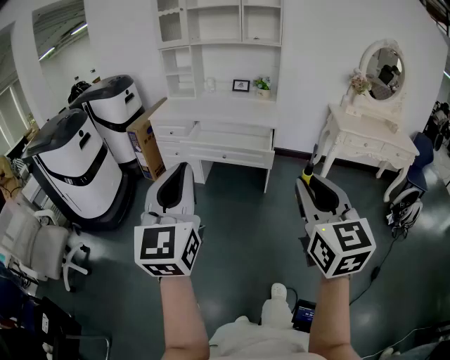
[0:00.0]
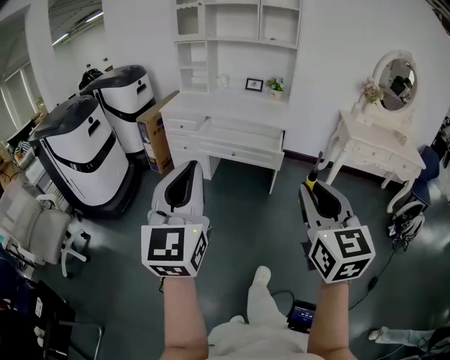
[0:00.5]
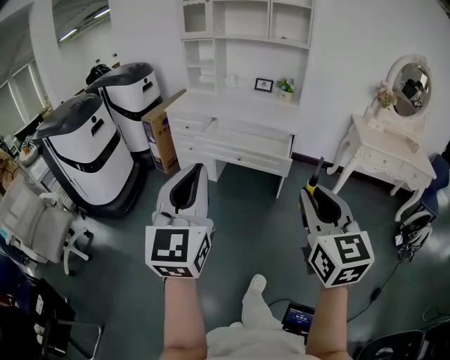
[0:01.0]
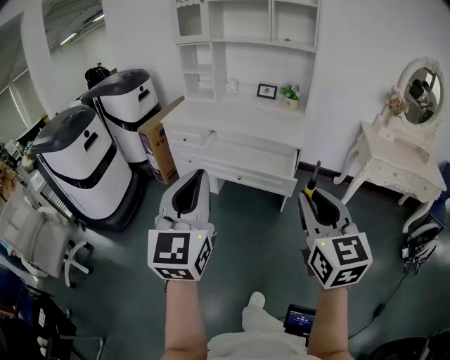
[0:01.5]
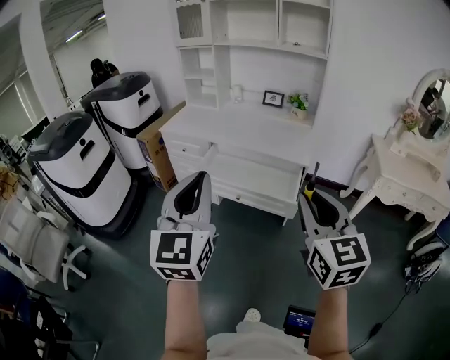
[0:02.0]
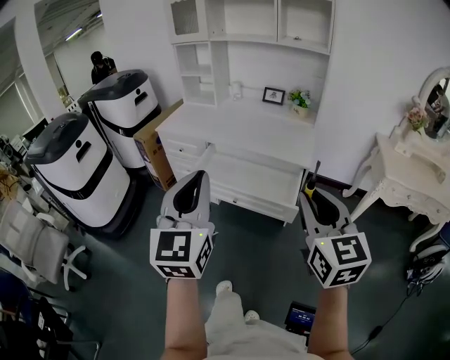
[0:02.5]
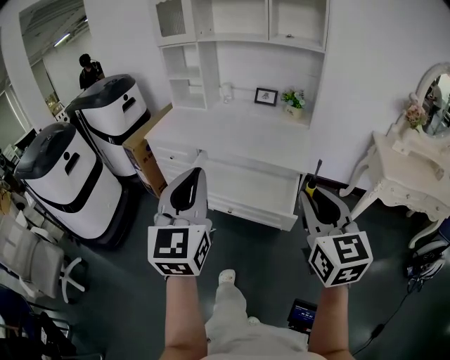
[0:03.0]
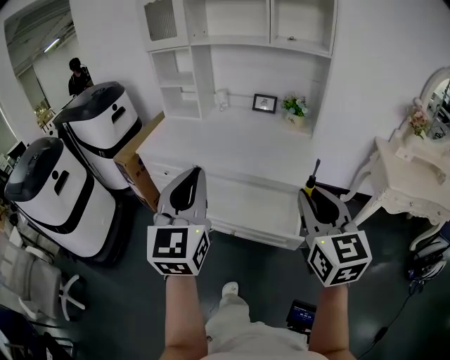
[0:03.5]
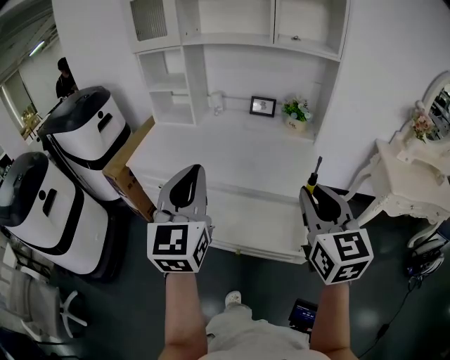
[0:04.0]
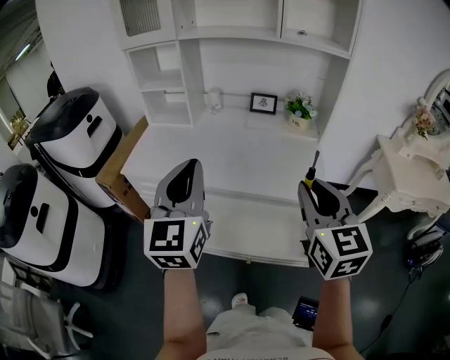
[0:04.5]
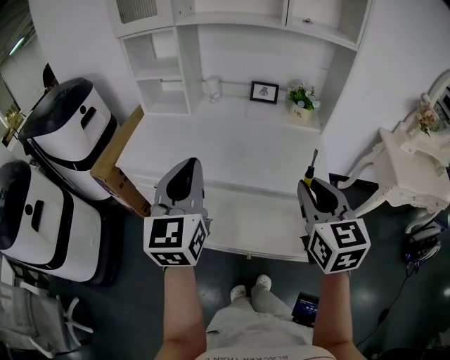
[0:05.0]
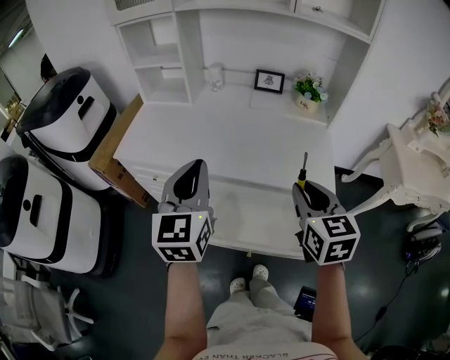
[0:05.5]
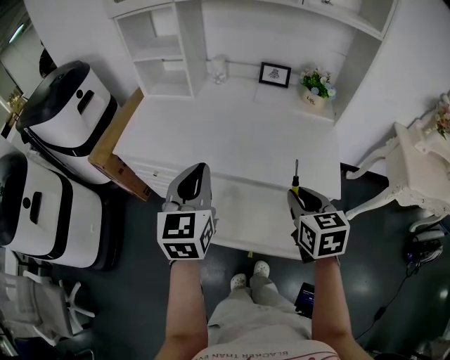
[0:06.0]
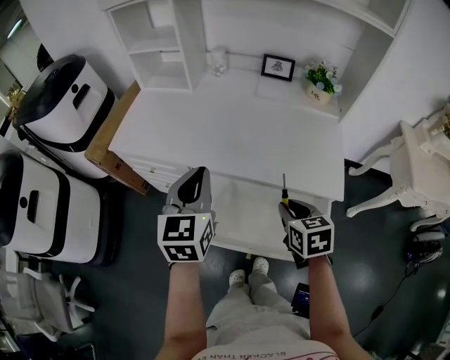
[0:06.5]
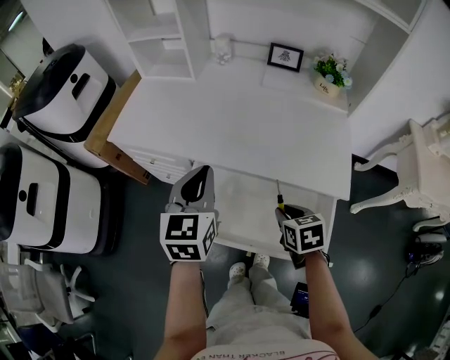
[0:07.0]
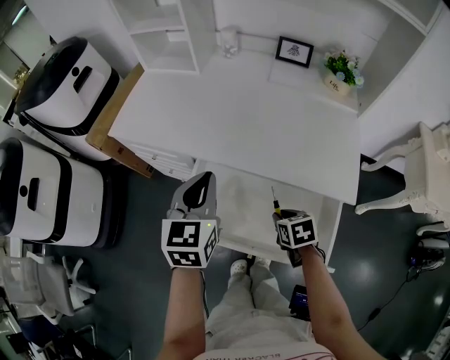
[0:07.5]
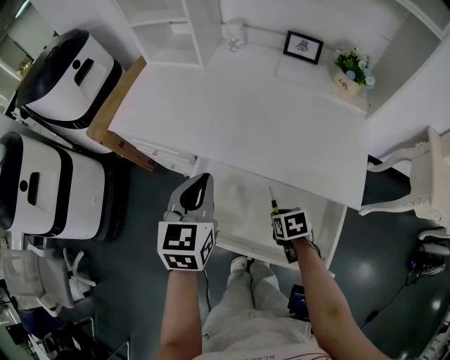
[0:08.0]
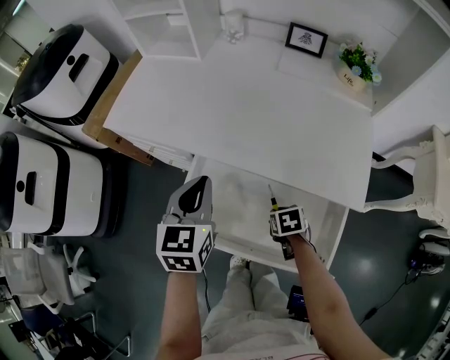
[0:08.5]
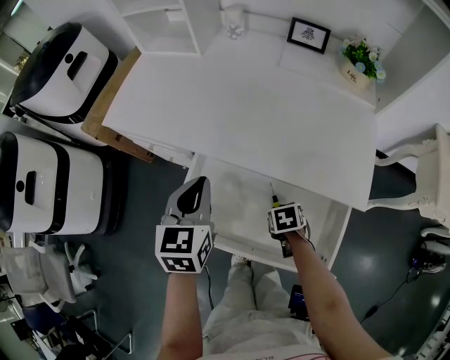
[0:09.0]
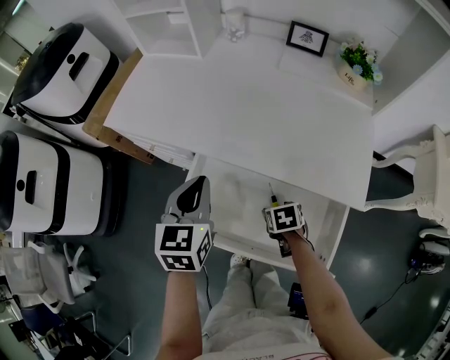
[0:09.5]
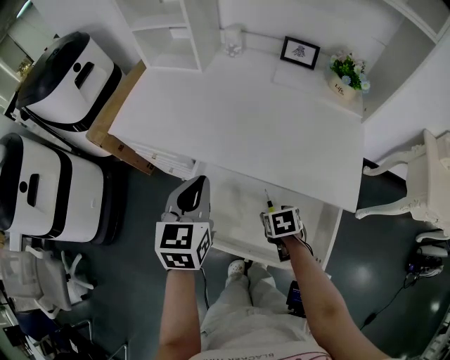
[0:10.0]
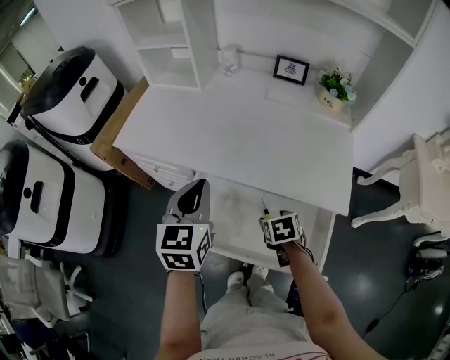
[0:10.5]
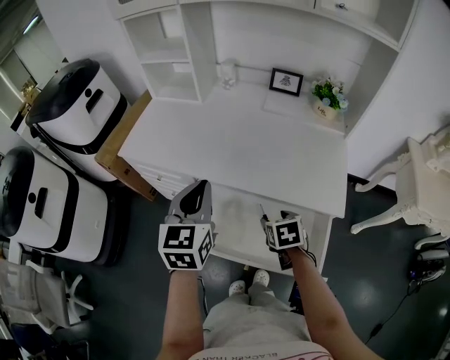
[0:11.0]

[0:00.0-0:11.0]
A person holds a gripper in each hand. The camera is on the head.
0:00.0 to 0:02.0: Both grippers move forward, about 30 cm.
0:02.0 to 0:03.5: Both grippers travel together forward, roughly 20 cm.
0:03.5 to 0:05.5: Both grippers travel together forward and downward, about 25 cm.
0:05.5 to 0:07.5: The left gripper travels downward by roughly 15 cm. The right gripper heads downward, covering some 30 cm, and points its fingers roughly 40 degrees further downward.
0:07.5 to 0:09.0: The left gripper is displaced downward by some 5 cm. The right gripper shifts approximately 10 cm downward.
0:09.0 to 0:11.0: Both grippers move upward, roughly 15 cm. The right gripper opens.

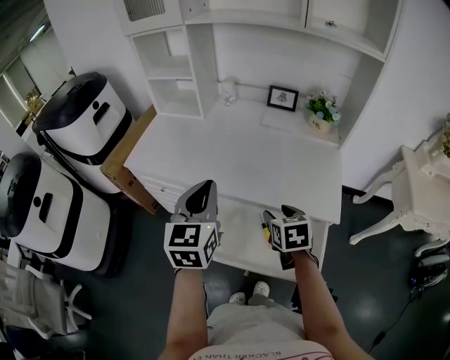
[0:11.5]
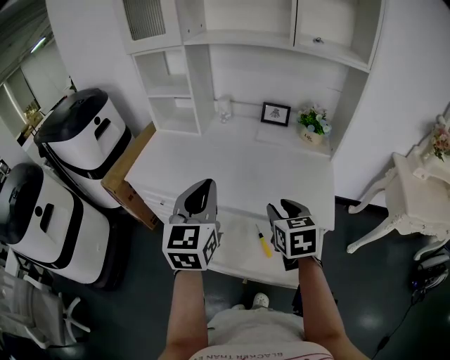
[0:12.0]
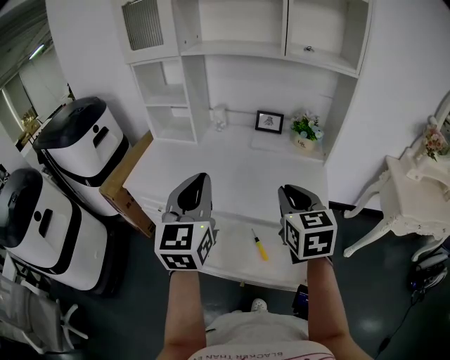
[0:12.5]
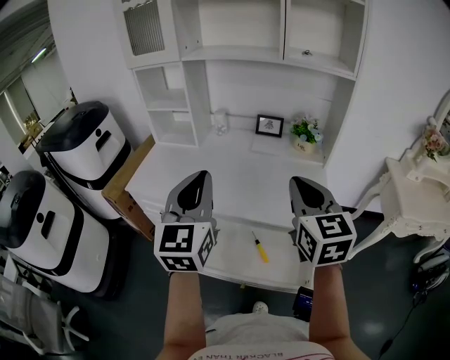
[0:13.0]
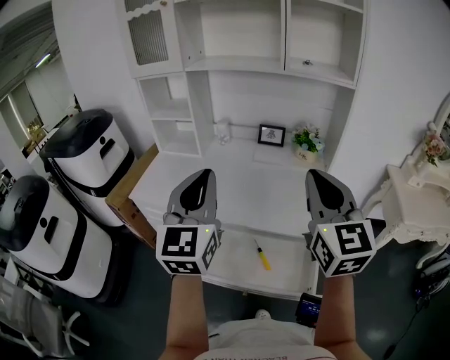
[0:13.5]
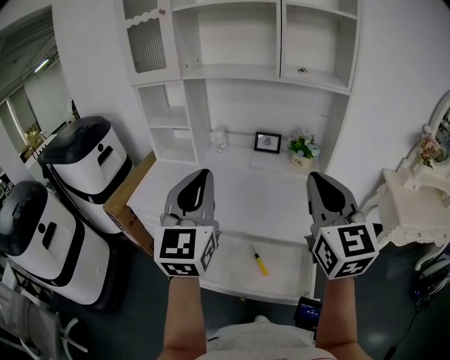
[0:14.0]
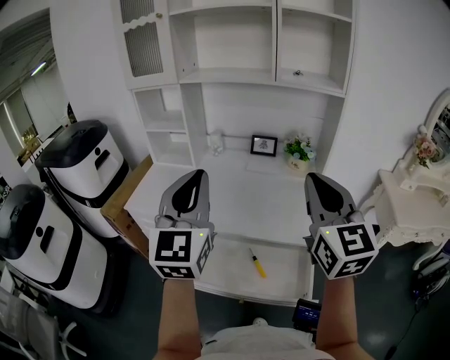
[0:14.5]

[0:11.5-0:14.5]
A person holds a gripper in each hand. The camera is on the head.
0:11.5 to 0:13.0: The left gripper shifts about 15 cm upward. Meanwhile the right gripper is displaced upward by roughly 25 cm, angles its fingers upward, by about 40 degrees, and closes up.
0:13.0 to 0:14.5: The two grippers go roughly 10 cm upward.

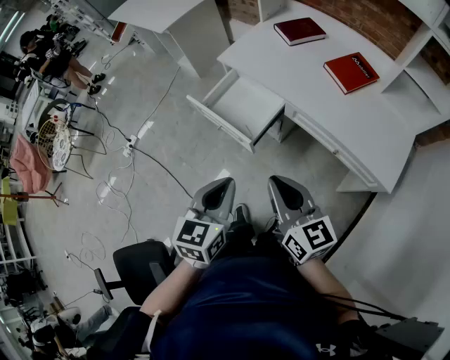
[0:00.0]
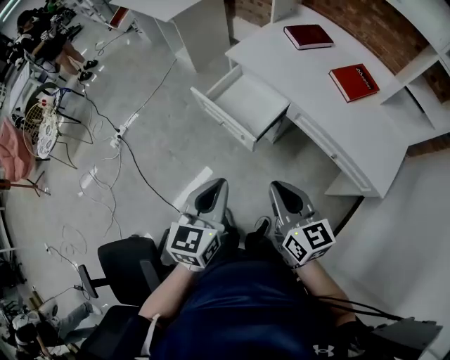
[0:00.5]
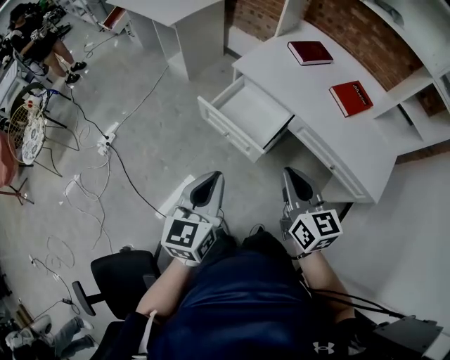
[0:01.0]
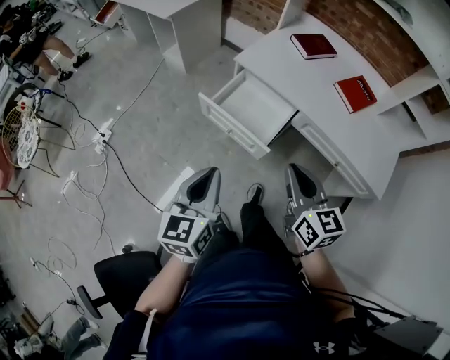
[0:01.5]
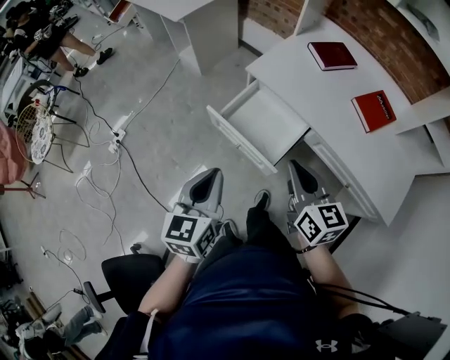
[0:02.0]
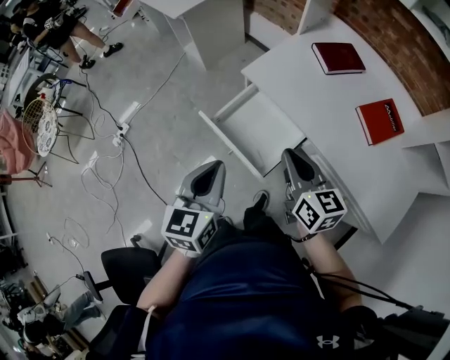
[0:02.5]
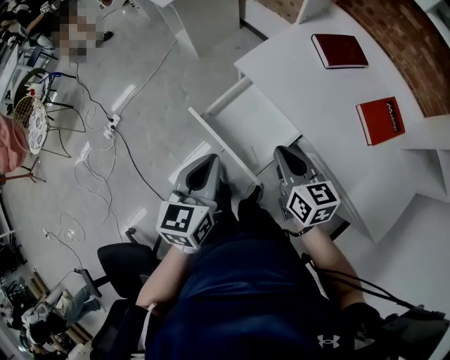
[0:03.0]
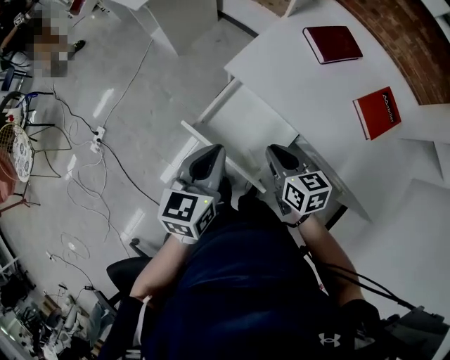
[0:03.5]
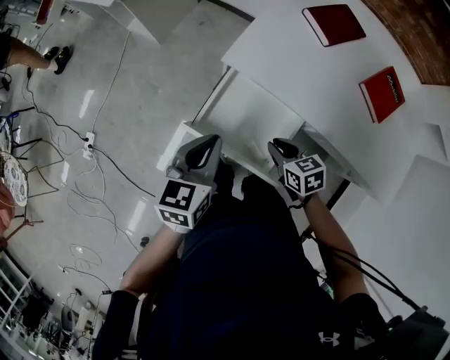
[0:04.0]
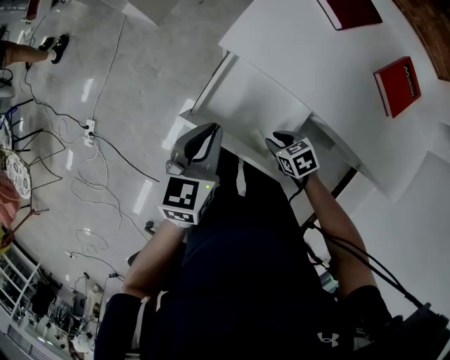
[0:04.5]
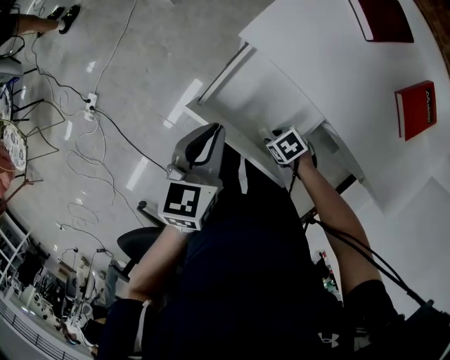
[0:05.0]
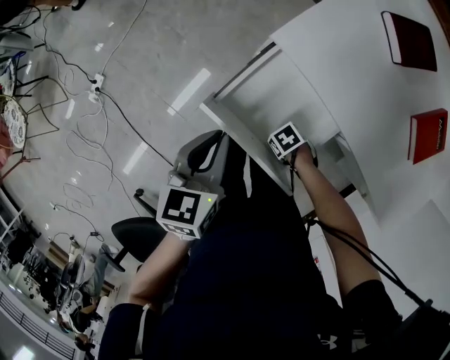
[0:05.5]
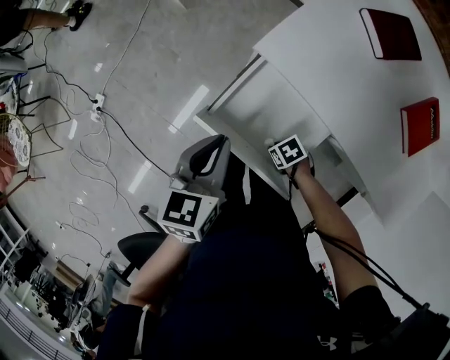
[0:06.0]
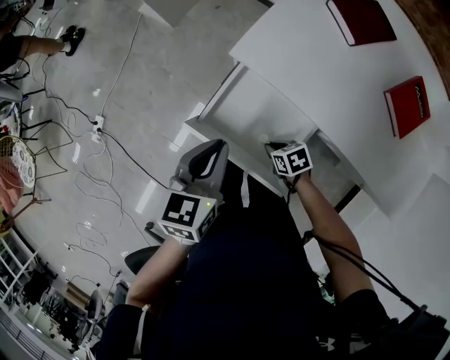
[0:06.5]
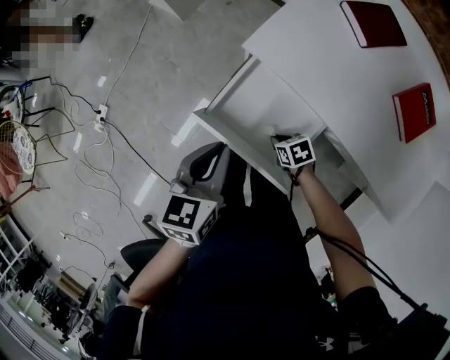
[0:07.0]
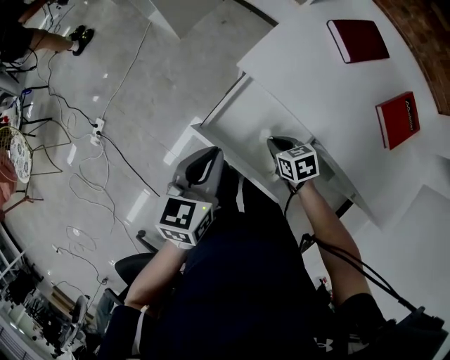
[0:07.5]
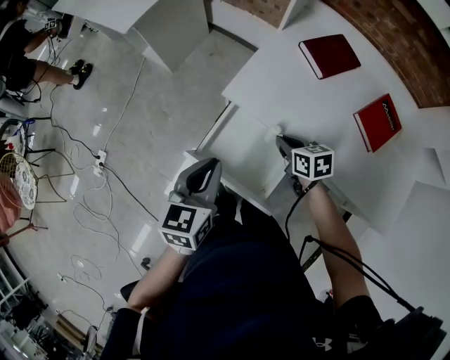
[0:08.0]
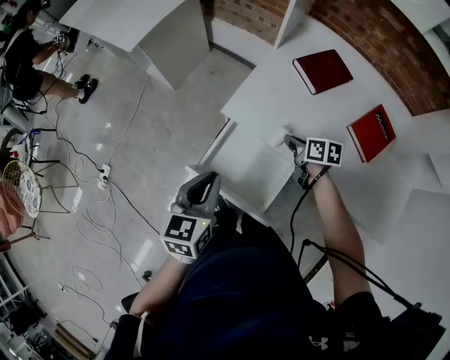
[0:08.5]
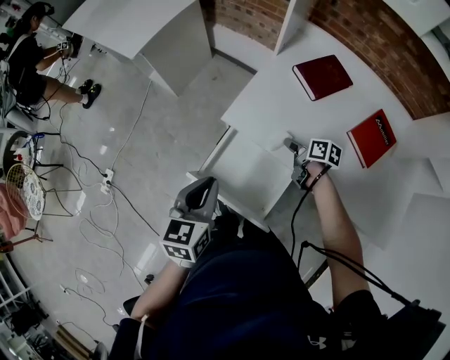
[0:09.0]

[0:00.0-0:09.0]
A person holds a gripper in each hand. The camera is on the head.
0:00.0 to 0:02.0: The right gripper shifts approximately 20 cm forward and to the left. Meanwhile the left gripper shifts approximately 20 cm to the left and forward.
0:02.0 to 0:04.5: The right gripper goes some 35 cm downward, angles its fingers downward, by some 50 degrees, and opens; the left gripper goes approximately 30 cm forward and downward, and changes its angle by some 20 degrees.
0:04.5 to 0:07.0: The right gripper is displaced downward by roughly 5 cm, and closes.
0:07.0 to 0:09.0: The right gripper heads forward, upward and to the right, covering approximately 25 cm, swivels about 50 degrees, and opens, while the left gripper shifts some 10 cm upward.

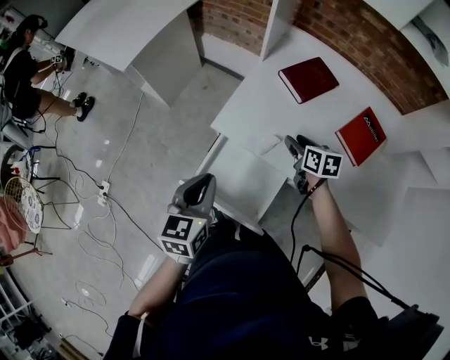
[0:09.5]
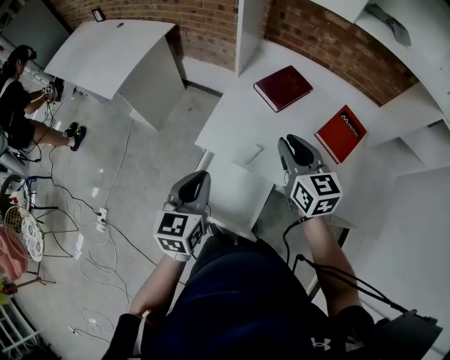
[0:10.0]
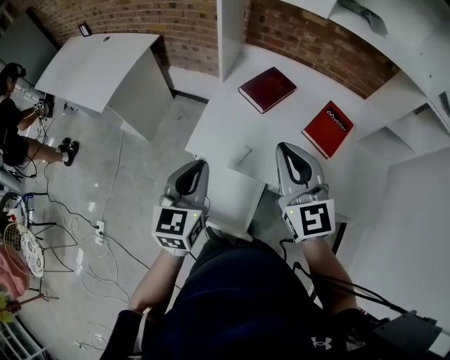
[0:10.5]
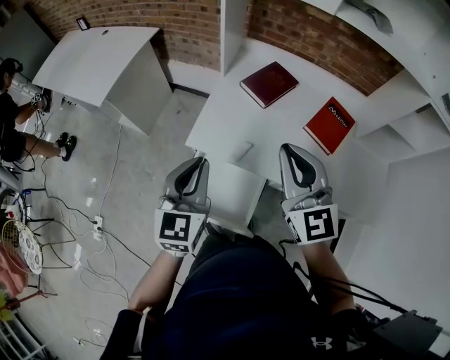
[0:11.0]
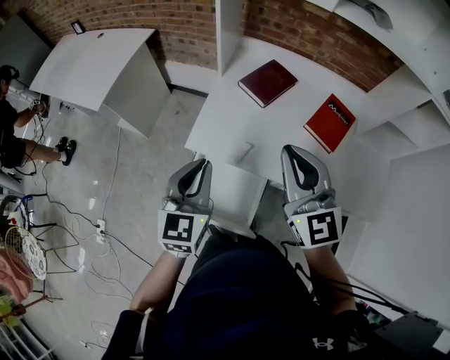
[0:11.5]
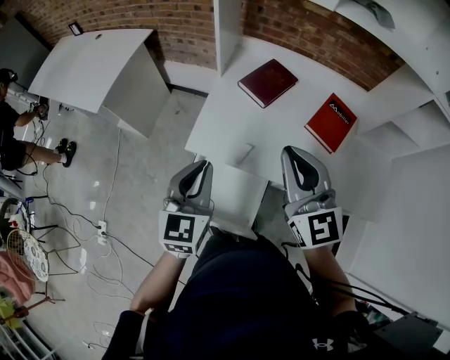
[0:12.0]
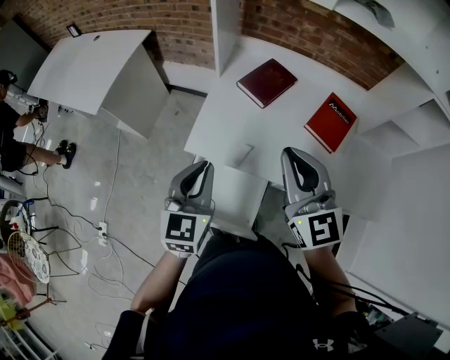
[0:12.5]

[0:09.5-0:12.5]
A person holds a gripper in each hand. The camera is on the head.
0:09.5 to 0:11.0: The right gripper is displaced upward by some 30 cm, angles its fingers upward, by about 40 degrees, and closes. Meanwhile the left gripper moves upward and to the right, roughly 10 cm, and swivels about 20 degrees.
0:11.0 to 0:12.5: The grippers make only small movements.
